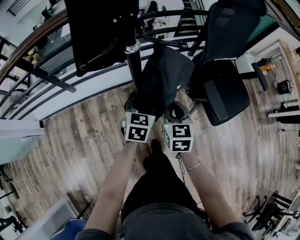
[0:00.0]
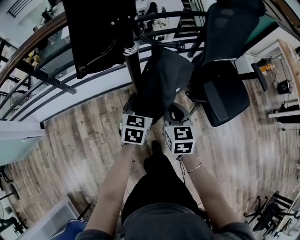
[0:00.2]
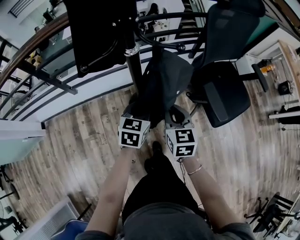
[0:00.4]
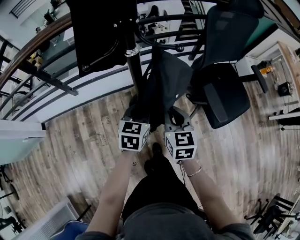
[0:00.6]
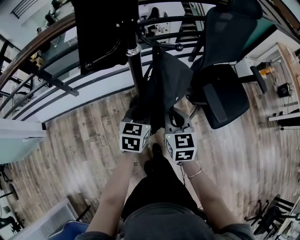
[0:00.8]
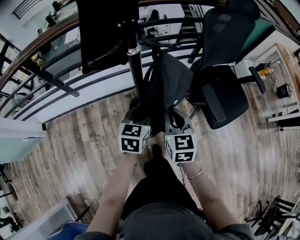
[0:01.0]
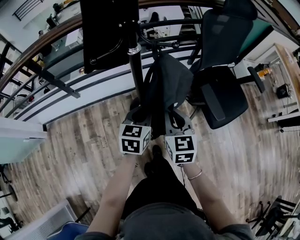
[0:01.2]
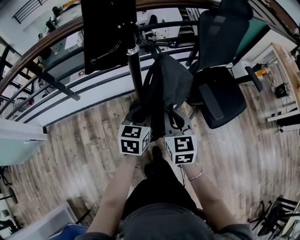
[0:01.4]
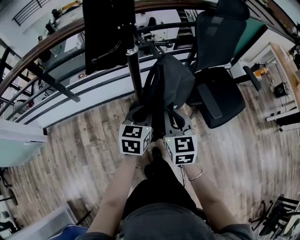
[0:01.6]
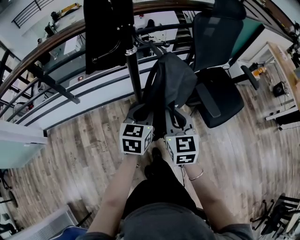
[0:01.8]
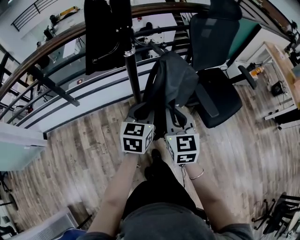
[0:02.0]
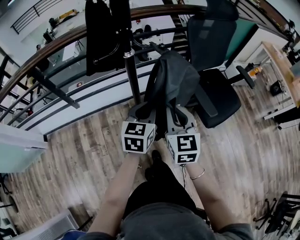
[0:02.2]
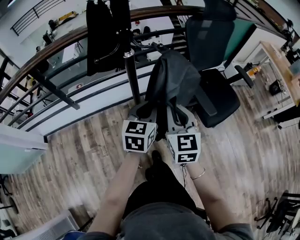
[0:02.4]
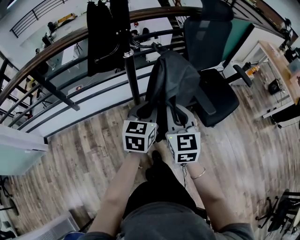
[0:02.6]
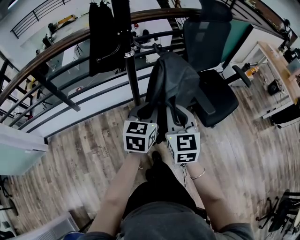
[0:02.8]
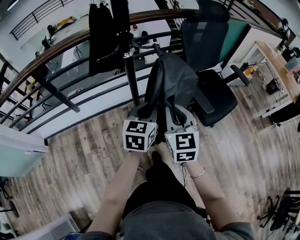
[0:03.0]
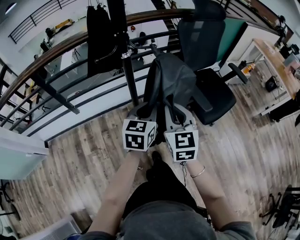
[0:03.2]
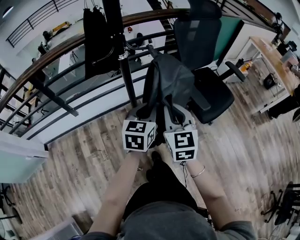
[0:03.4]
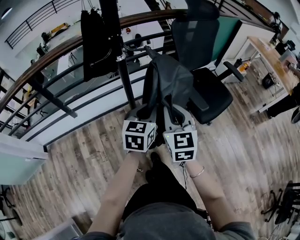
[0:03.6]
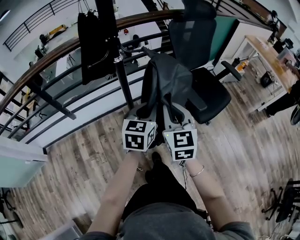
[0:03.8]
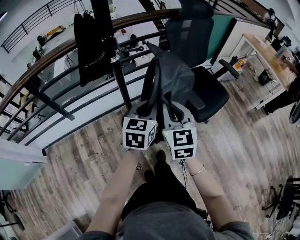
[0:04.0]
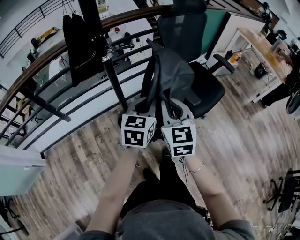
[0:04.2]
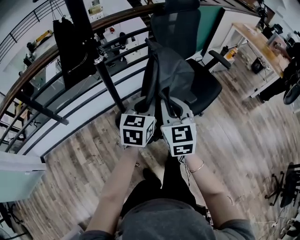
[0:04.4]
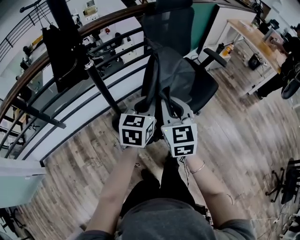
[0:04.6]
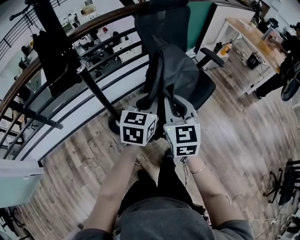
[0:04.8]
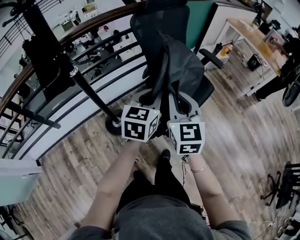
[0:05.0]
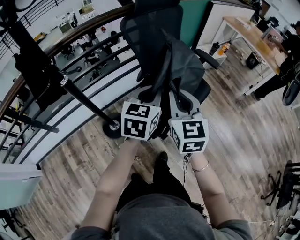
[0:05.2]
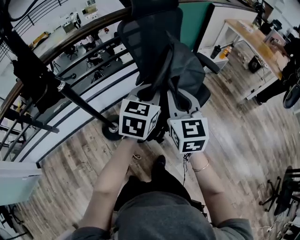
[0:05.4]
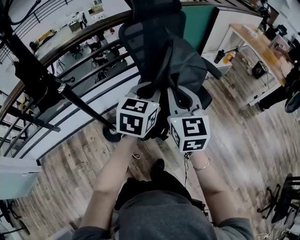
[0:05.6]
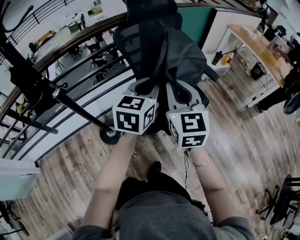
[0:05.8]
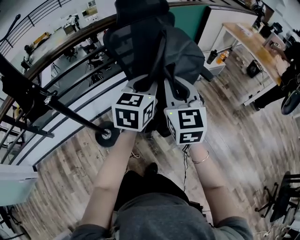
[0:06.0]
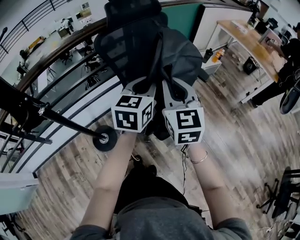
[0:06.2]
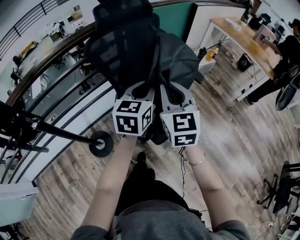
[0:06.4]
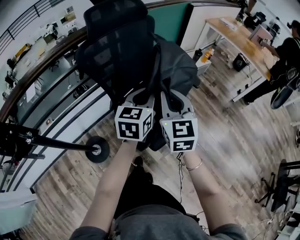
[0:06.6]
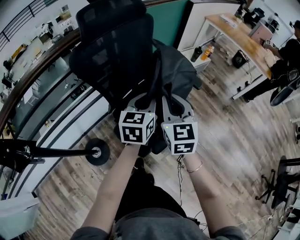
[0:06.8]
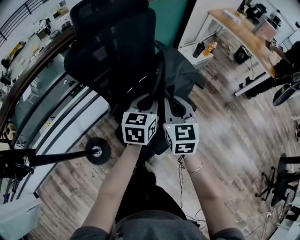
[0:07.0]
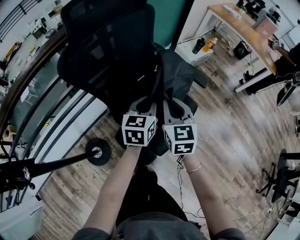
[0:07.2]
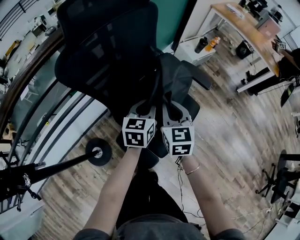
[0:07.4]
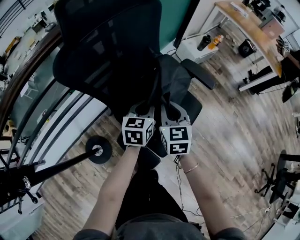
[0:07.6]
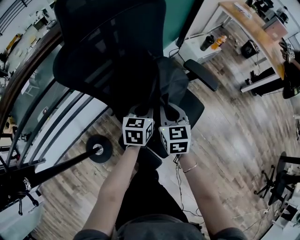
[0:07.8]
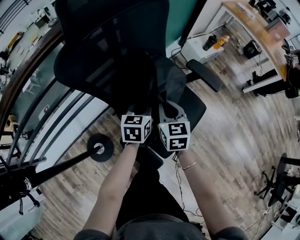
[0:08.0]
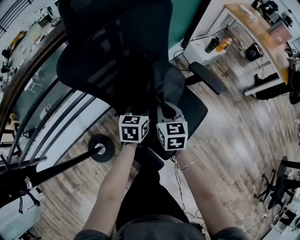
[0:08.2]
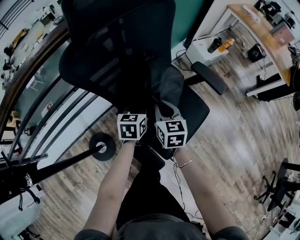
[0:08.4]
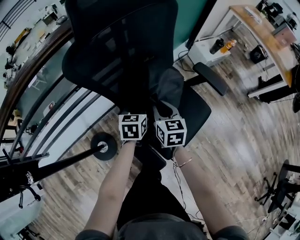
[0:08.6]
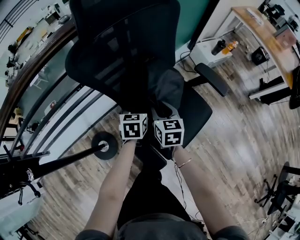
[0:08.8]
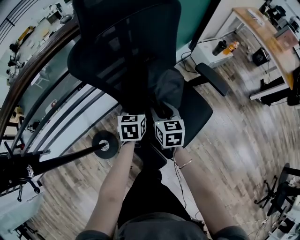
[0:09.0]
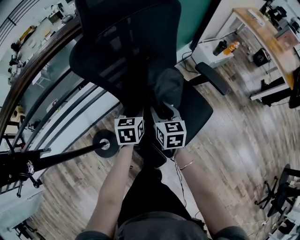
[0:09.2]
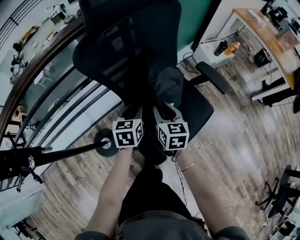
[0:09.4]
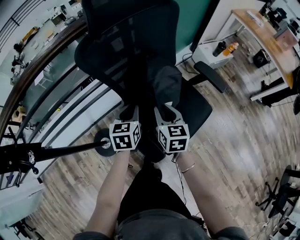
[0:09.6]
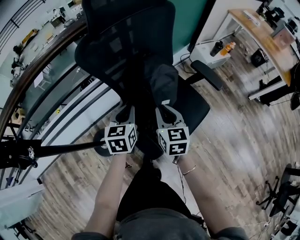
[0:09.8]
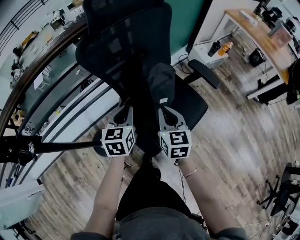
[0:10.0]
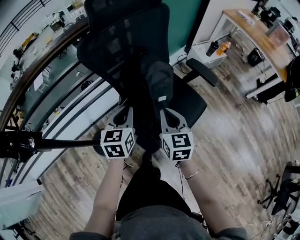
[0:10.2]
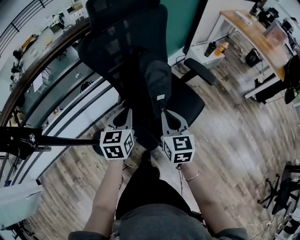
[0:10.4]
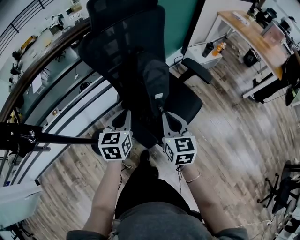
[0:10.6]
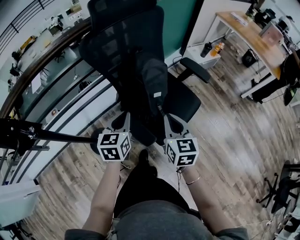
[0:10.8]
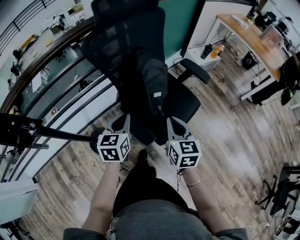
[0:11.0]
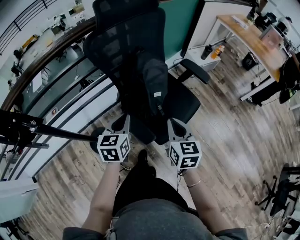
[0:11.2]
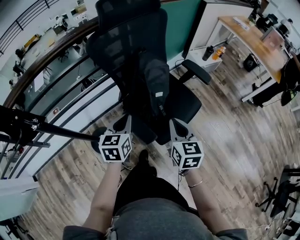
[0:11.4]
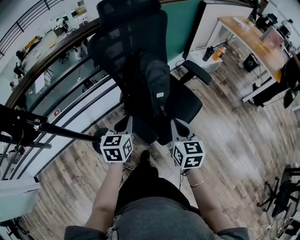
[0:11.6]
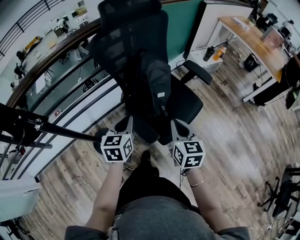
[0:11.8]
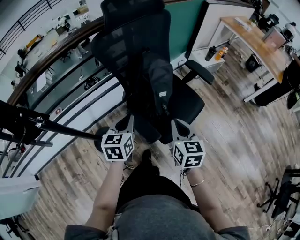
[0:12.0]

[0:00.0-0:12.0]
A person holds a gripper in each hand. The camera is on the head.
0:00.0 to 0:01.6: The two grippers go approximately 10 cm upward and backward. The left gripper closes up.
0:01.6 to 0:03.0: Both grippers move upward, approximately 5 cm.
0:03.0 to 0:04.4: The grippers both shift to the right by some 5 cm.
0:04.4 to 0:06.0: The right gripper shifts roughly 30 cm to the right and forward. The left gripper shifts some 30 cm forward, to the right and upward.
0:06.0 to 0:07.6: The two grippers go approximately 30 cm downward and forward. The right gripper rotates about 30 degrees.
0:07.6 to 0:09.0: Both grippers move to the left and downward, approximately 10 cm. The right gripper opens up; the left gripper opens up.
0:09.0 to 0:10.4: The two grippers go about 20 cm backward and upward. The right gripper closes. Meanwhile the left gripper closes its fingers.
0:10.4 to 0:12.0: The two grippers go roughly 5 cm backward.

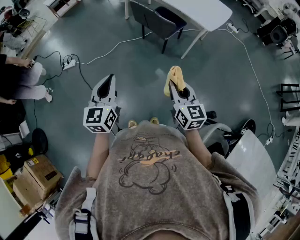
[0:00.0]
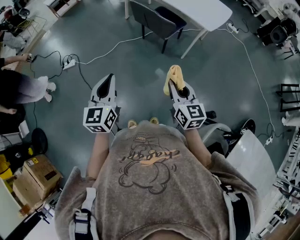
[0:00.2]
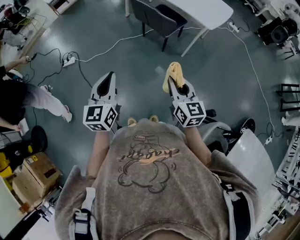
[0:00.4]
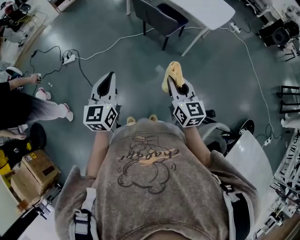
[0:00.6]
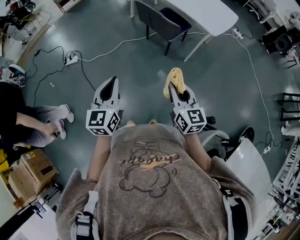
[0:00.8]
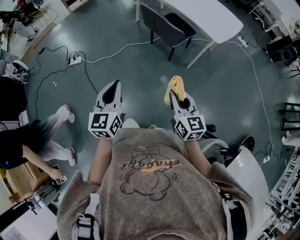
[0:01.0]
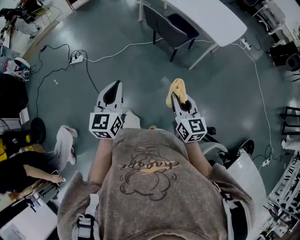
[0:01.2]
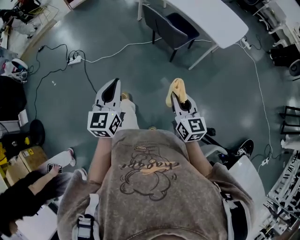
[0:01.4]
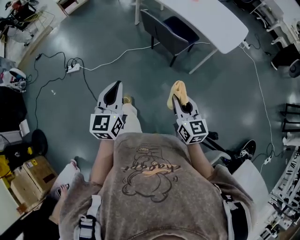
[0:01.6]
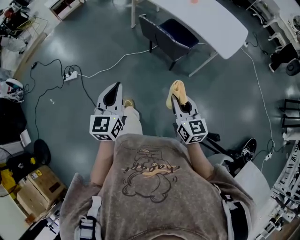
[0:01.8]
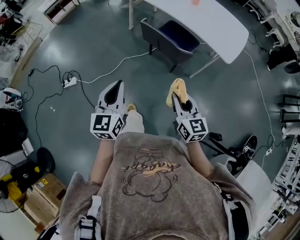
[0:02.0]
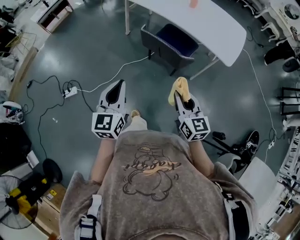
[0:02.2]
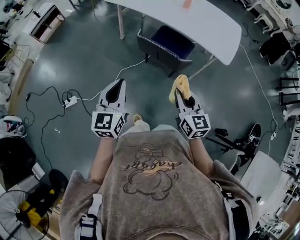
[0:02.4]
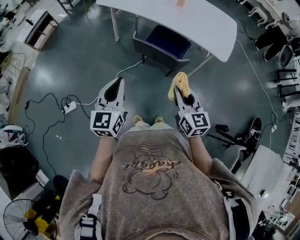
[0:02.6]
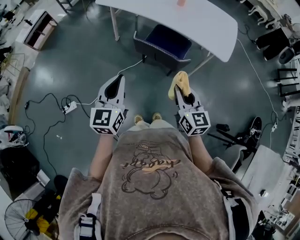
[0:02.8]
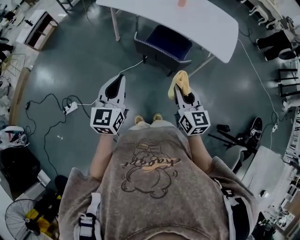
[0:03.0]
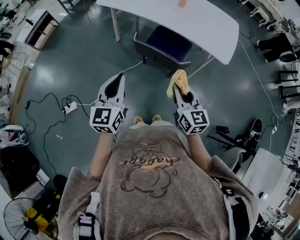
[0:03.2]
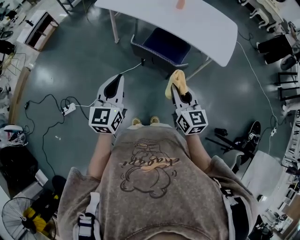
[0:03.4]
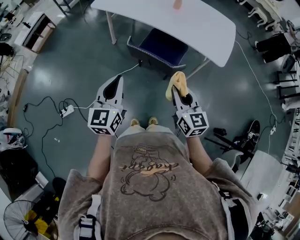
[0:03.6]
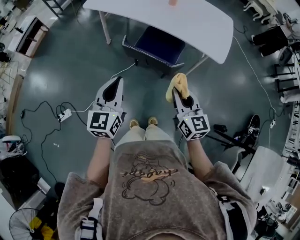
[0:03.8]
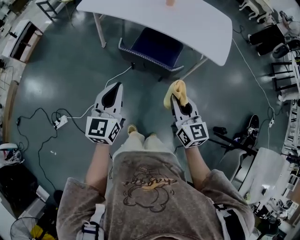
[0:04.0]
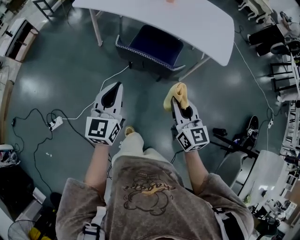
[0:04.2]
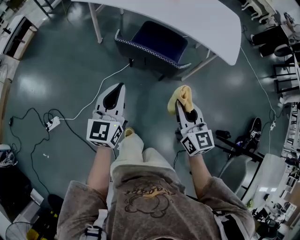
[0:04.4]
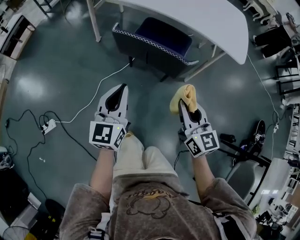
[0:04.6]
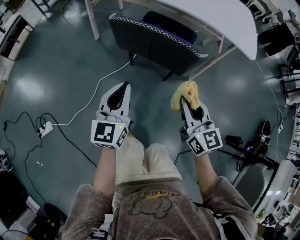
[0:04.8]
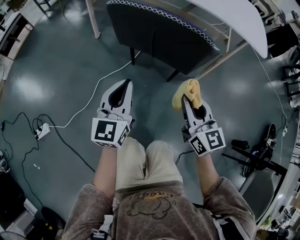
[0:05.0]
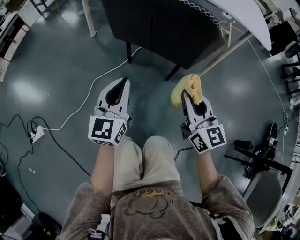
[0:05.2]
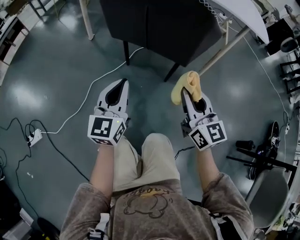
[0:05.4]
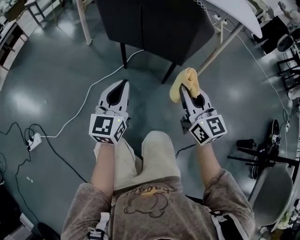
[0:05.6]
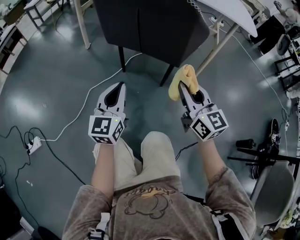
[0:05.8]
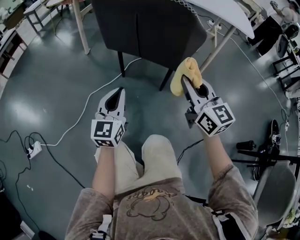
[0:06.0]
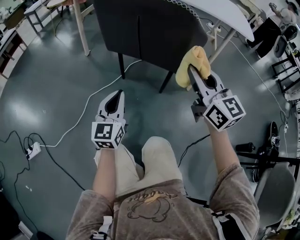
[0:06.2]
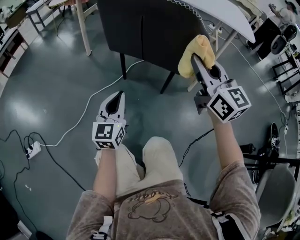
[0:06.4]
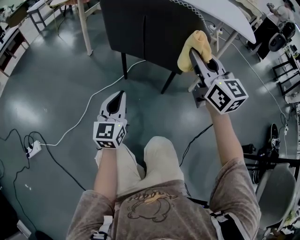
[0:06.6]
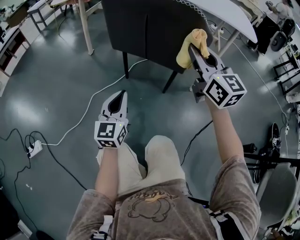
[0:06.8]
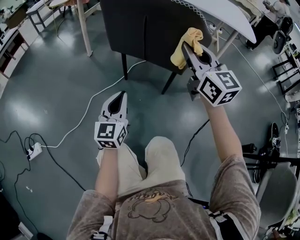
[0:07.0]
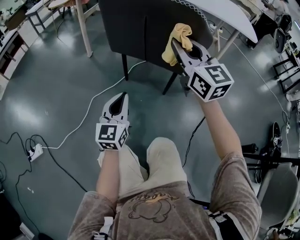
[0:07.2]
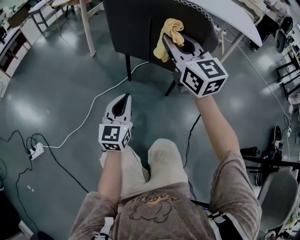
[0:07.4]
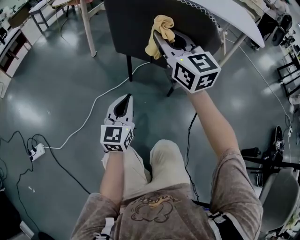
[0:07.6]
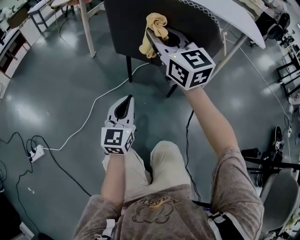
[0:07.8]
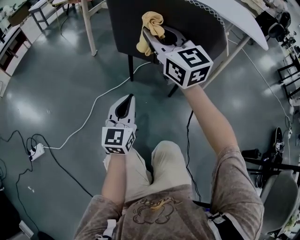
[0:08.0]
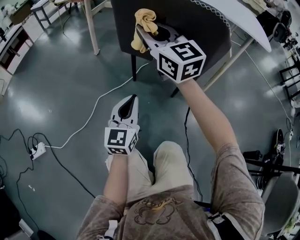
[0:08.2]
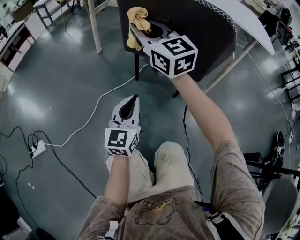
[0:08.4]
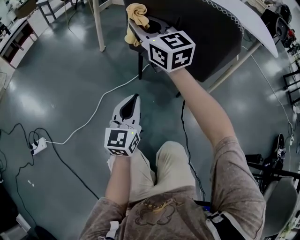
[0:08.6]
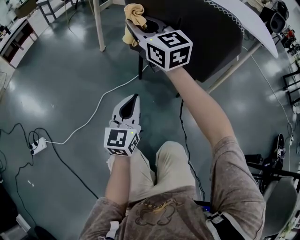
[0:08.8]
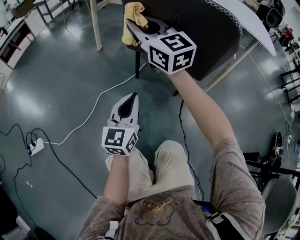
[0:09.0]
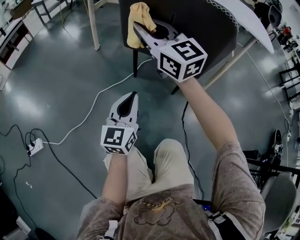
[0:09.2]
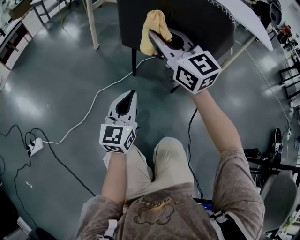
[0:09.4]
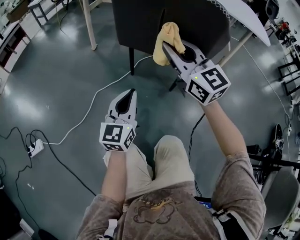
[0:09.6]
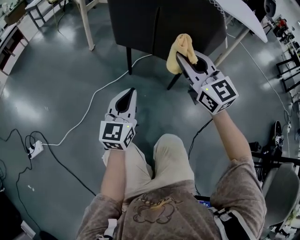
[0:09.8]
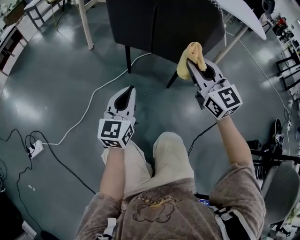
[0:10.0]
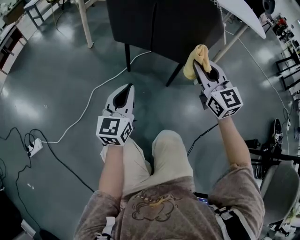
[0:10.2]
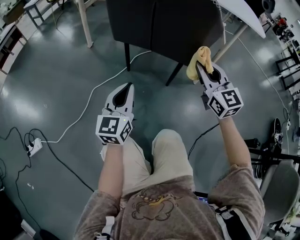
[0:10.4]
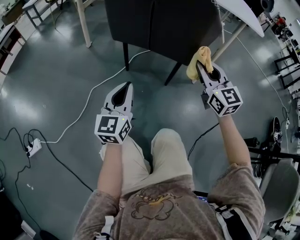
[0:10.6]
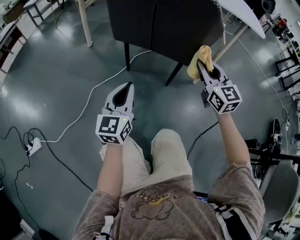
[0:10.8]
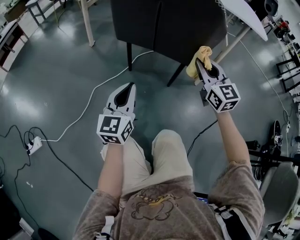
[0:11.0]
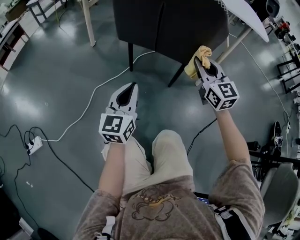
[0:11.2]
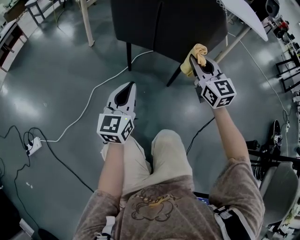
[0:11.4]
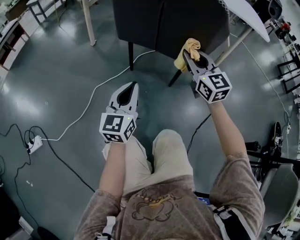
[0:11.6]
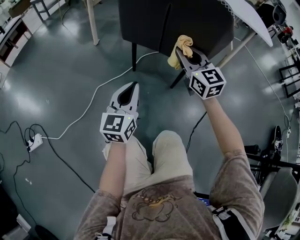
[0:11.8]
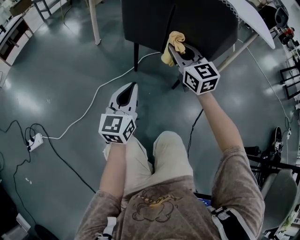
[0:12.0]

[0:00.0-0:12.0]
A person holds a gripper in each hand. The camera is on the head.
0:00.0 to 0:01.6: Both grippers travel together forward, approximately 10 cm.
0:01.6 to 0:03.0: The left gripper shifts some 30 cm forward, and turns by roughly 20 degrees; the right gripper heads forward and to the left, covering some 30 cm.
0:03.0 to 0:04.4: The left gripper moves downward and forward, roughly 15 cm; the right gripper travels downward by about 15 cm.
0:04.4 to 0:06.0: The left gripper is displaced downward by some 35 cm, while the right gripper shifts some 20 cm downward.
0:06.0 to 0:07.6: The right gripper heads to the left, forward and upward, covering roughly 20 cm.
0:07.6 to 0:09.0: The right gripper goes approximately 15 cm to the left and forward.
0:09.0 to 0:10.4: The right gripper heads to the right and backward, covering roughly 30 cm, and turns by roughly 20 degrees.
0:10.4 to 0:12.0: The right gripper moves to the left and forward, approximately 15 cm.
